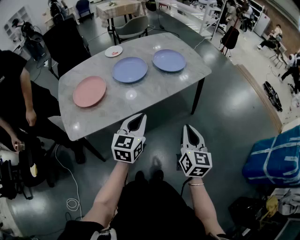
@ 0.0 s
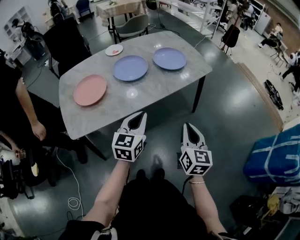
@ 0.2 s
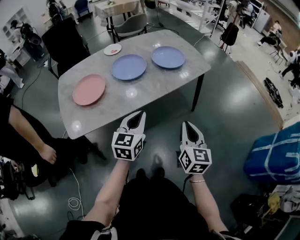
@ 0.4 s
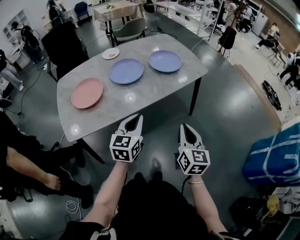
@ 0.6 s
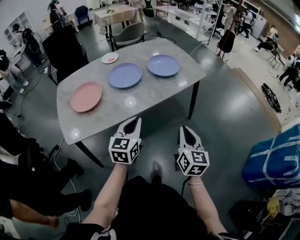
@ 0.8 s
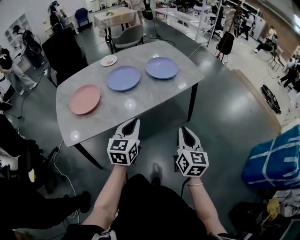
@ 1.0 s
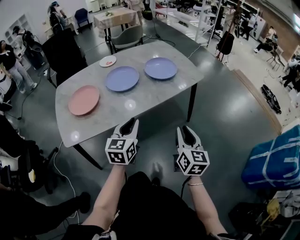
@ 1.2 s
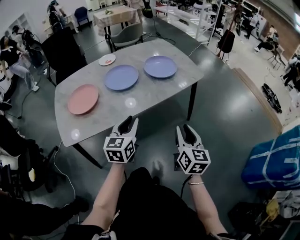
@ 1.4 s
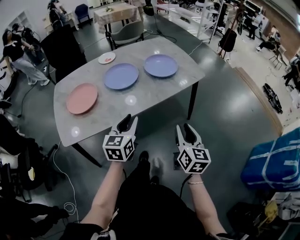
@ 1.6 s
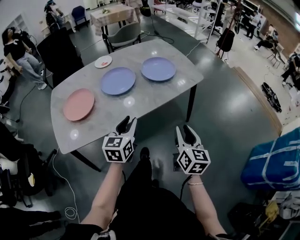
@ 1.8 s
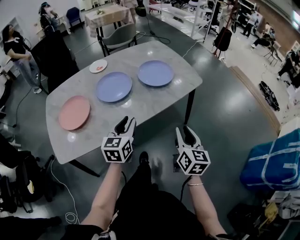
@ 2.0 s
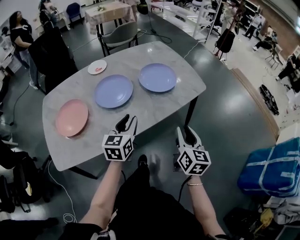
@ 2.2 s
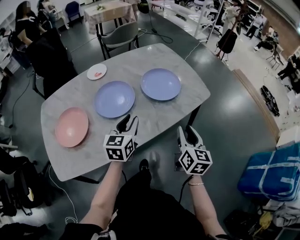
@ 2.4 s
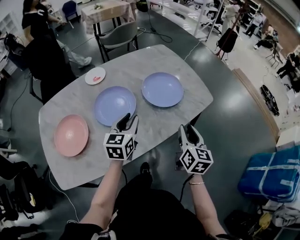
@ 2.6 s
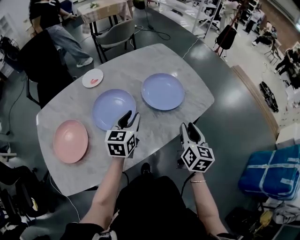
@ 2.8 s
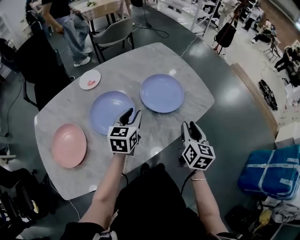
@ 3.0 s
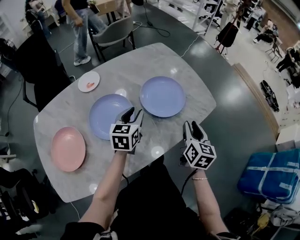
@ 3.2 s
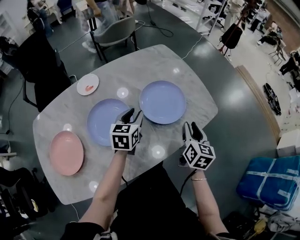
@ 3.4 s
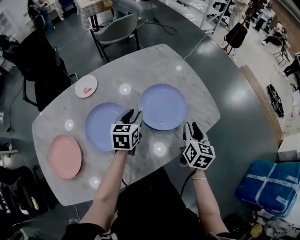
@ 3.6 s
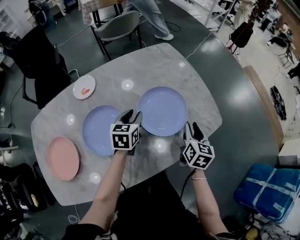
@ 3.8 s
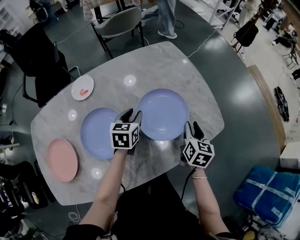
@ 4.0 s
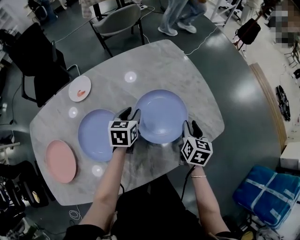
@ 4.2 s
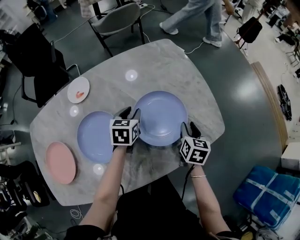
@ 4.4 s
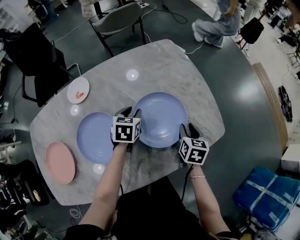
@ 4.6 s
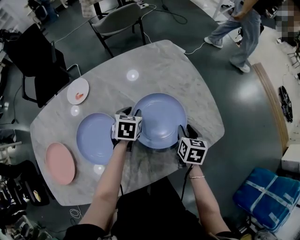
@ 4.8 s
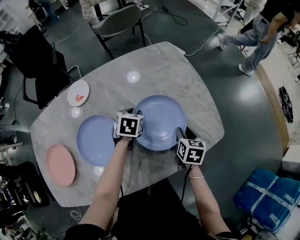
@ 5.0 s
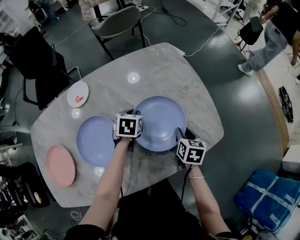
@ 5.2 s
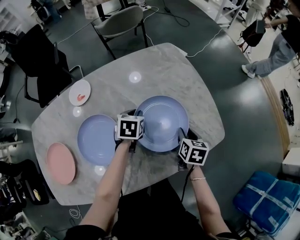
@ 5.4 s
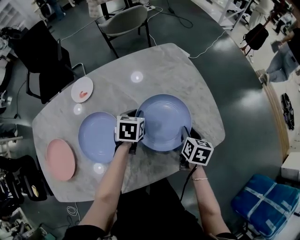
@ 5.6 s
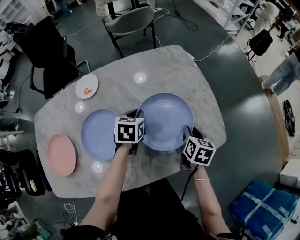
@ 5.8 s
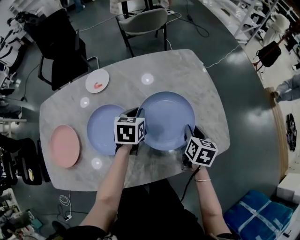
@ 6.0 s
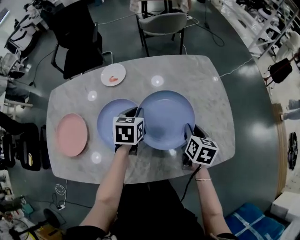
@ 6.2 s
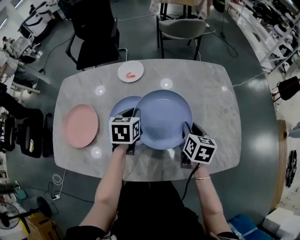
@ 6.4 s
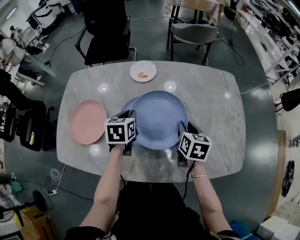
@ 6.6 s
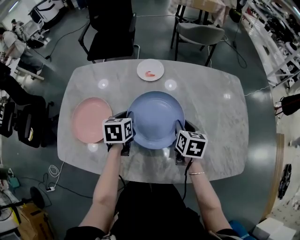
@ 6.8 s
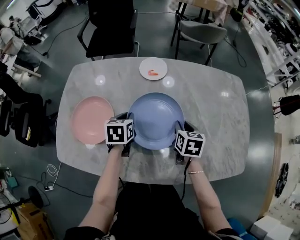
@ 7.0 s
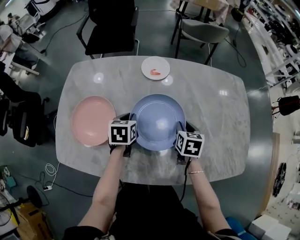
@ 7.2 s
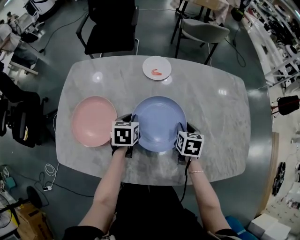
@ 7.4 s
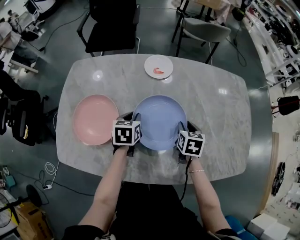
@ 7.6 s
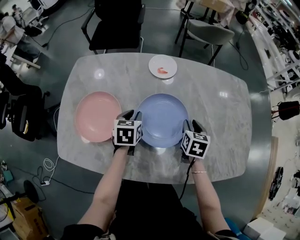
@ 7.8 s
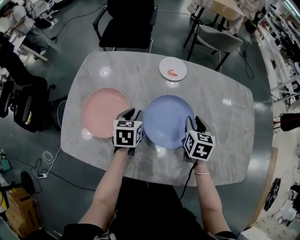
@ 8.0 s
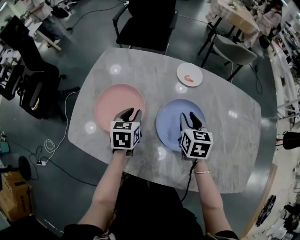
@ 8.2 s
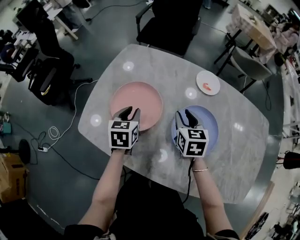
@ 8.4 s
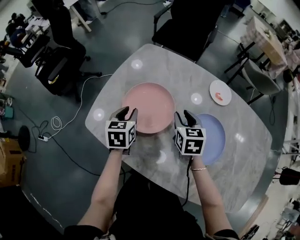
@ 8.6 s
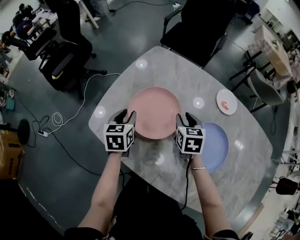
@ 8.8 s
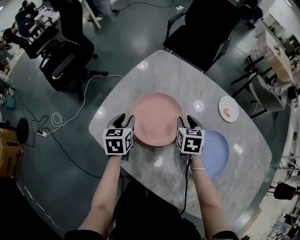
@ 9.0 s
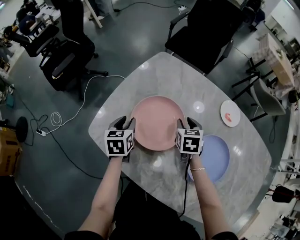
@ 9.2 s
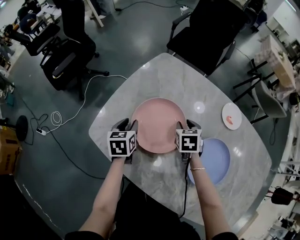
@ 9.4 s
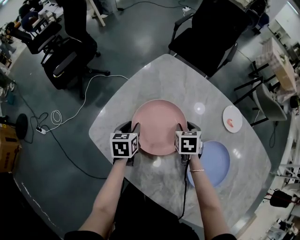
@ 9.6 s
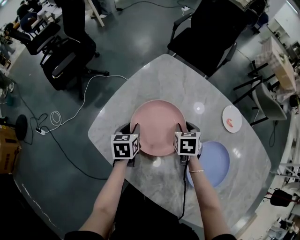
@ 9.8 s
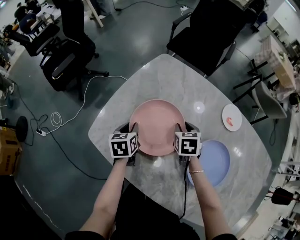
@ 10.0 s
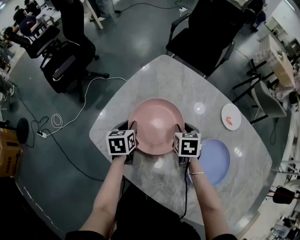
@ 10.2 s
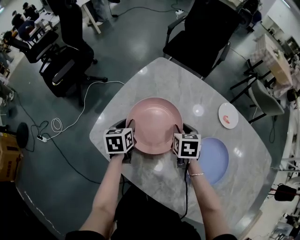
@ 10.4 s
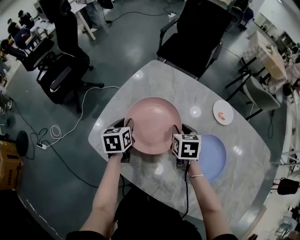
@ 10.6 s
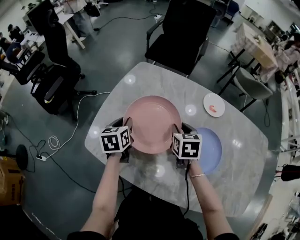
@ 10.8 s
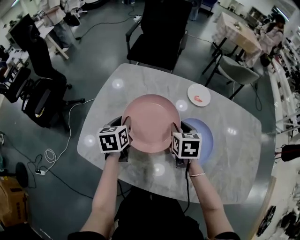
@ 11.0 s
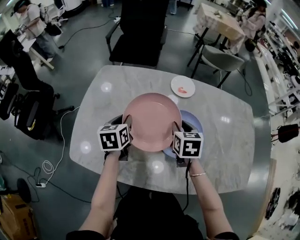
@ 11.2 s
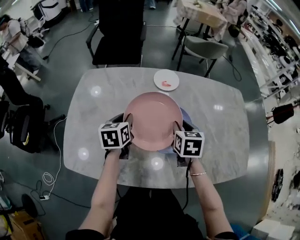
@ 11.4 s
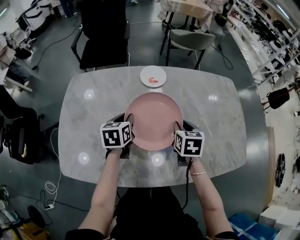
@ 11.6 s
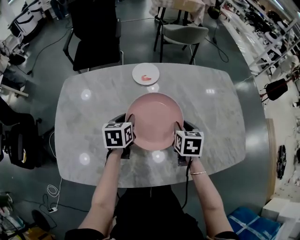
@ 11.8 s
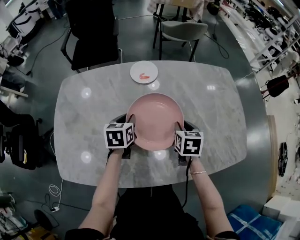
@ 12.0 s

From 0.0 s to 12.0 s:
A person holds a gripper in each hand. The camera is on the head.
From 0.0 s to 1.6 s: The left gripper opens. Meanwhile the right gripper shifts by some 5 cm, and opens its fingers.
From 1.6 s to 3.0 s: The two grippers go roughly 30 cm forward.
From 3.0 s to 4.4 s: The grippers both shift forward and downward by about 20 cm. The left gripper turns by roughly 20 degrees. Meanwhile the right gripper swivels some 20 degrees.
From 4.4 s to 6.0 s: The left gripper ends up some 5 cm from where it was, and closes up.
From 6.0 s to 7.6 s: The two grippers go roughly 30 cm to the left. The right gripper turns by approximately 30 degrees; the left gripper swivels some 20 degrees.
From 7.6 s to 9.0 s: The right gripper goes upward and returns, approximately 10 cm each way, and turns by some 40 degrees, while the left gripper changes place by roughly 35 cm, and rotates approximately 40 degrees.
From 9.0 s to 10.4 s: The grippers stay close to where they were, moving slightly.
From 10.4 s to 12.0 s: The left gripper changes place by some 35 cm, and swivels roughly 50 degrees, while the right gripper changes place by some 35 cm, and swivels approximately 40 degrees.

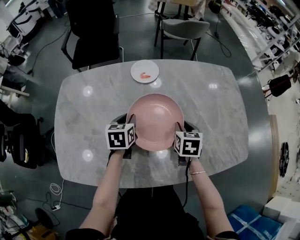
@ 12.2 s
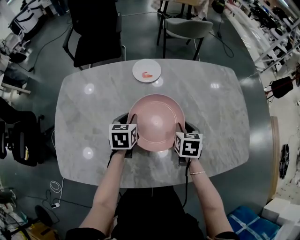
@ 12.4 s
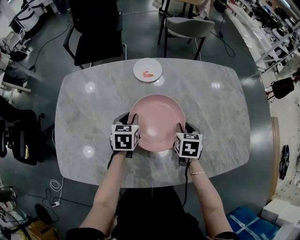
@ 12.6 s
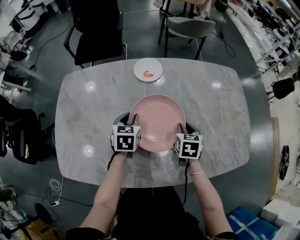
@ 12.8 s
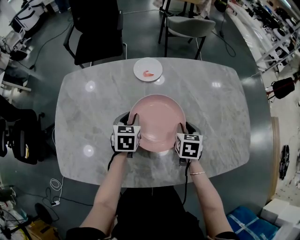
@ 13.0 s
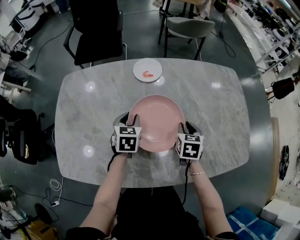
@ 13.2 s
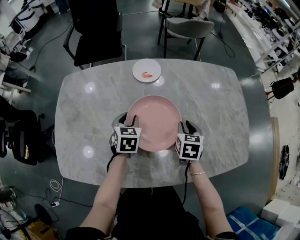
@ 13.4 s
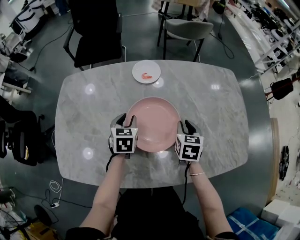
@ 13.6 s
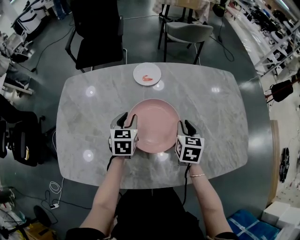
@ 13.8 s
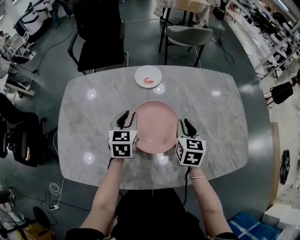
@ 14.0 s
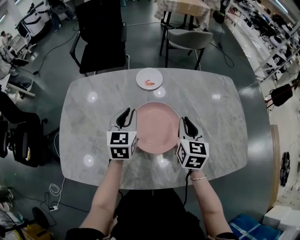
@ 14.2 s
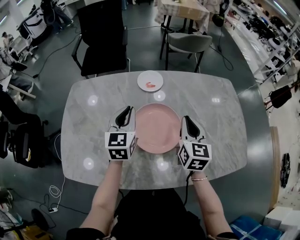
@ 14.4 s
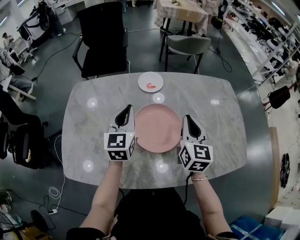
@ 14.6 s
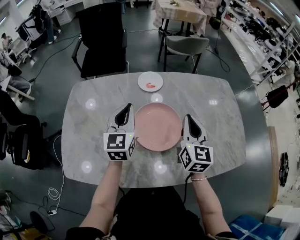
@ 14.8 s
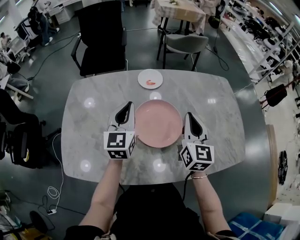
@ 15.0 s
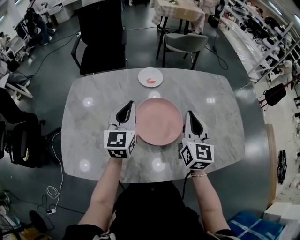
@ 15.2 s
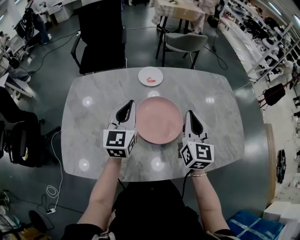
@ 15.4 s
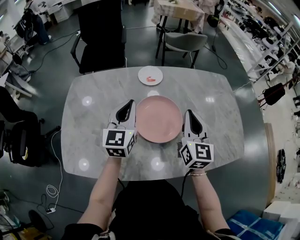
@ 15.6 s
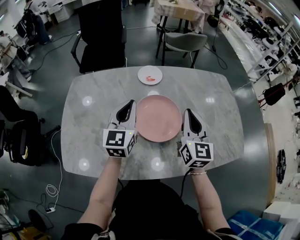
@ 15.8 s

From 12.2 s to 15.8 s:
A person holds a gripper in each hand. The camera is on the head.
From 12.2 s to 14.0 s: The grippers both shift upward by some 5 cm.
From 14.0 s to 15.8 s: The left gripper travels upward by approximately 10 cm, swivels approximately 20 degrees, and closes up. The right gripper heads upward and backward, covering about 15 cm, and swivels roughly 30 degrees.

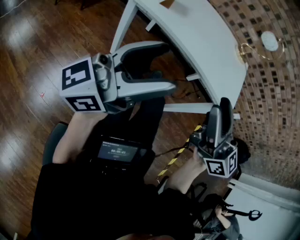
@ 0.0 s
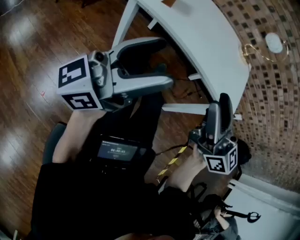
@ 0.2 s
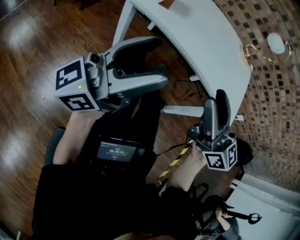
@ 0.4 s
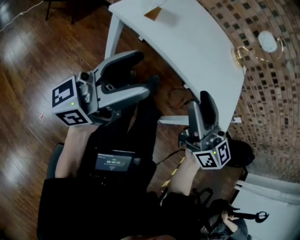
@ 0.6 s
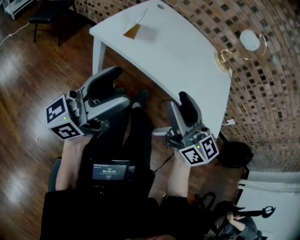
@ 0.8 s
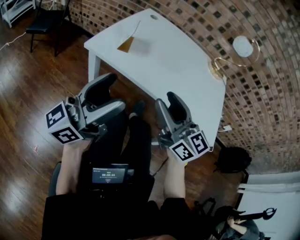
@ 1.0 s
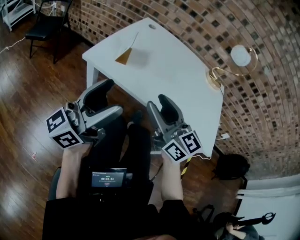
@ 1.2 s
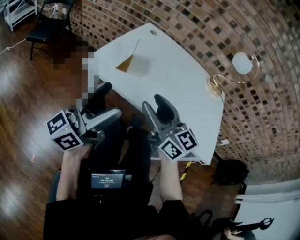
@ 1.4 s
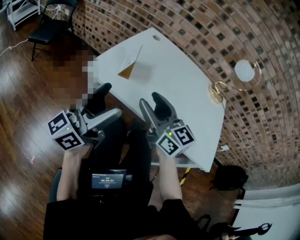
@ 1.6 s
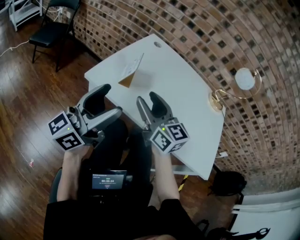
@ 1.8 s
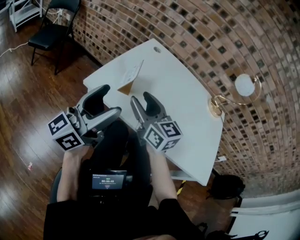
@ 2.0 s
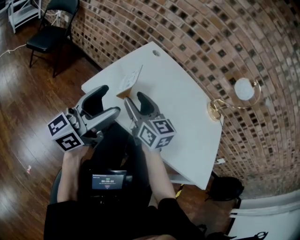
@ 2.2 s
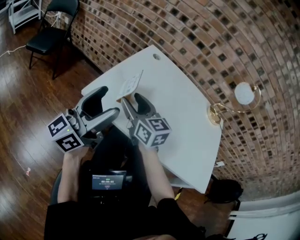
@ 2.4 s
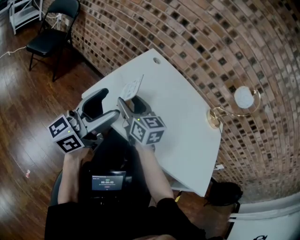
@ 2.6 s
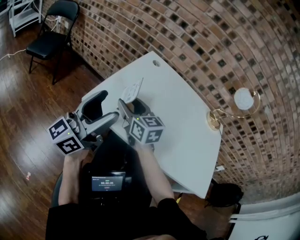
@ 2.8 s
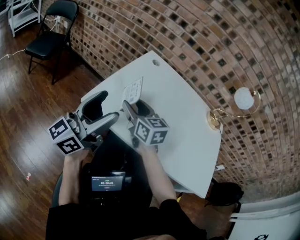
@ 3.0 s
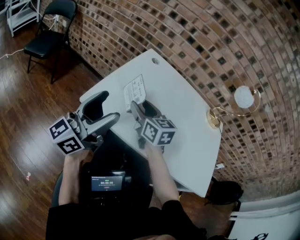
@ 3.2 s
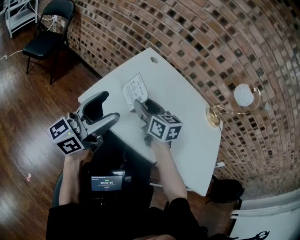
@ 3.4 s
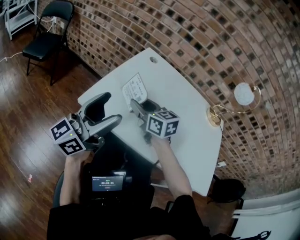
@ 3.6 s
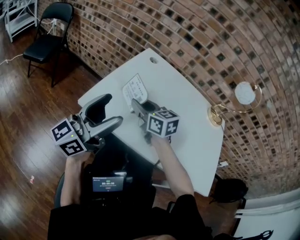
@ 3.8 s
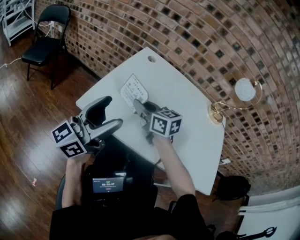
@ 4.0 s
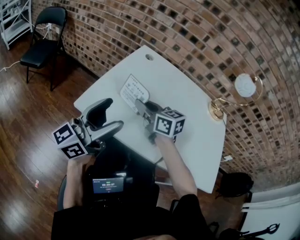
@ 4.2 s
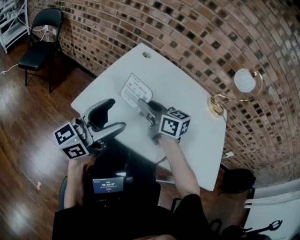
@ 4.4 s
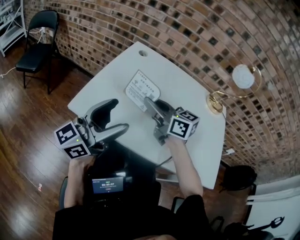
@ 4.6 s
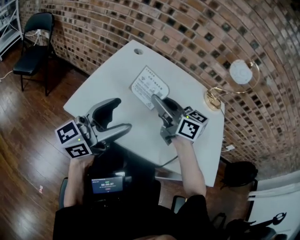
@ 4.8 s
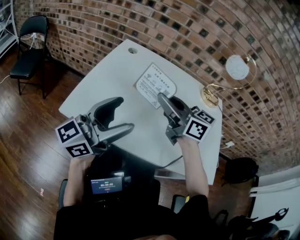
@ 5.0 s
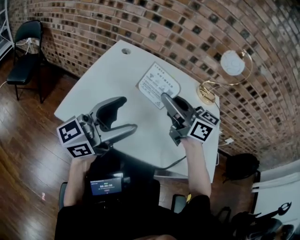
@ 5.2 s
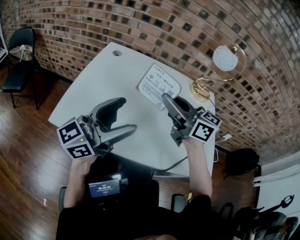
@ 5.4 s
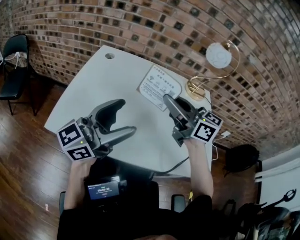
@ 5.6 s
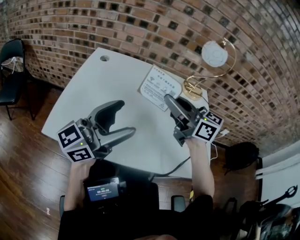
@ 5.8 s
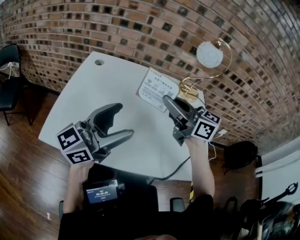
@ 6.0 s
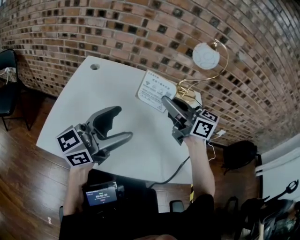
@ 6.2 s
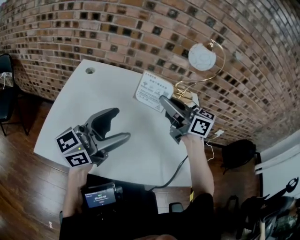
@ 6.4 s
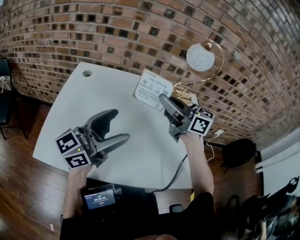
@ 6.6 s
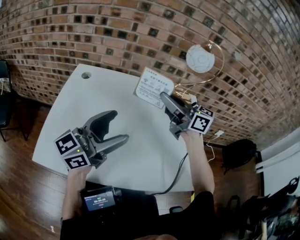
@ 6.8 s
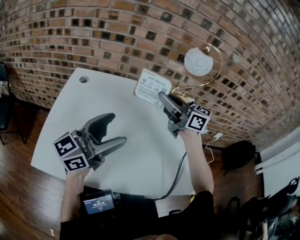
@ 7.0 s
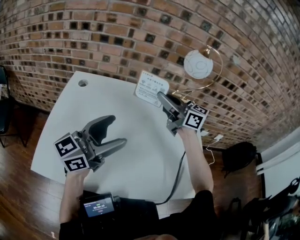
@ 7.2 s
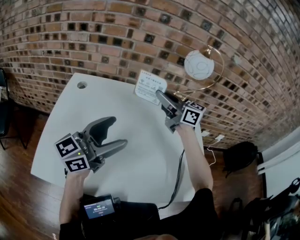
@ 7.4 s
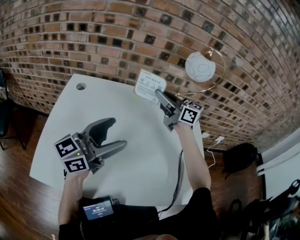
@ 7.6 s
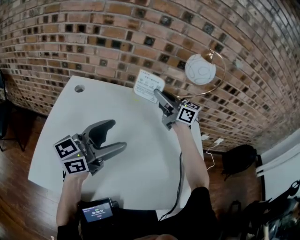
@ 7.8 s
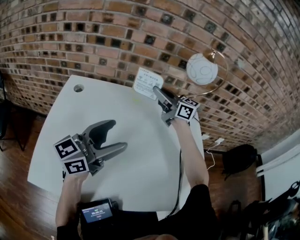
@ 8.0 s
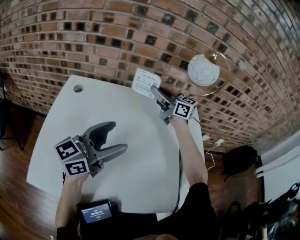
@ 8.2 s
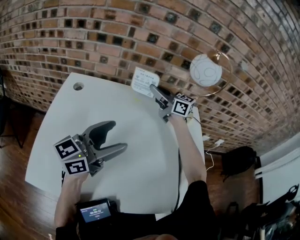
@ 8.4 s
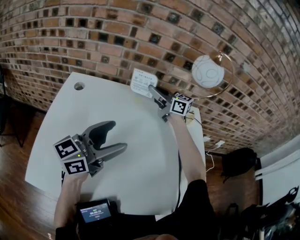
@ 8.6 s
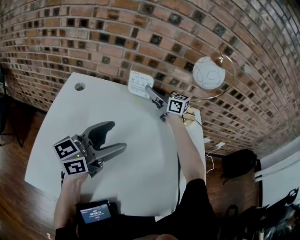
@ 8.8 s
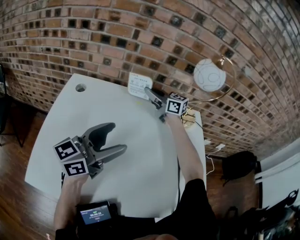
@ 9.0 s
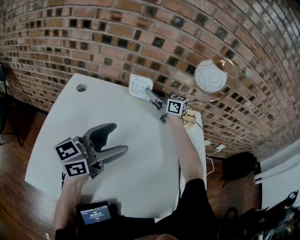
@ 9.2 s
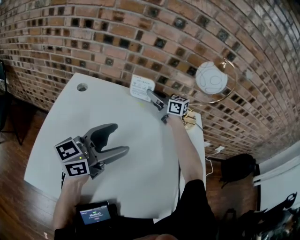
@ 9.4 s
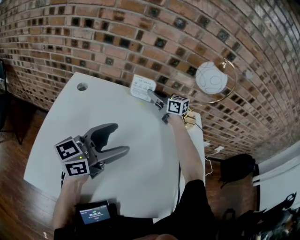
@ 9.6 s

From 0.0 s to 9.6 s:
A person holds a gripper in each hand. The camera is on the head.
From 0.0 s to 1.6 s: Both grippers travel together forward, roughly 25 cm.
From 1.6 s to 3.2 s: The left gripper heads forward, covering approximately 10 cm; the right gripper is displaced forward and downward by approximately 20 cm, and turns by approximately 20 degrees.
From 3.2 s to 4.8 s: The left gripper goes approximately 10 cm to the right. Meanwhile the right gripper shifts roughly 15 cm to the right and upward, turns by about 20 degrees, and closes up.
From 4.8 s to 6.4 s: The right gripper travels to the right by about 20 cm; the left gripper moves to the right and forward, approximately 15 cm.
From 6.4 s to 8.0 s: The left gripper goes about 10 cm forward. The right gripper shifts some 20 cm forward.
From 8.0 s to 9.6 s: The right gripper travels downward and forward by about 10 cm.
